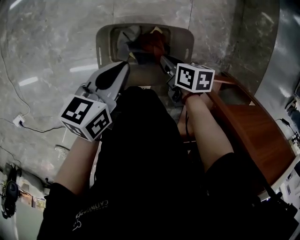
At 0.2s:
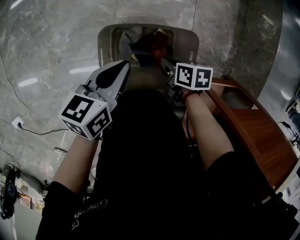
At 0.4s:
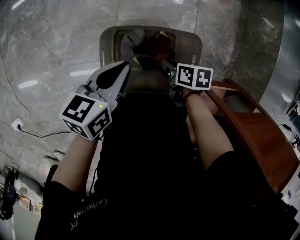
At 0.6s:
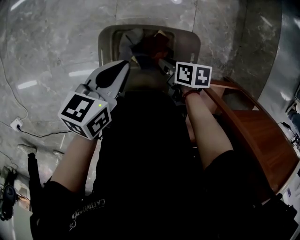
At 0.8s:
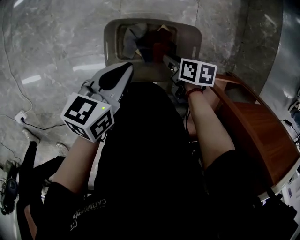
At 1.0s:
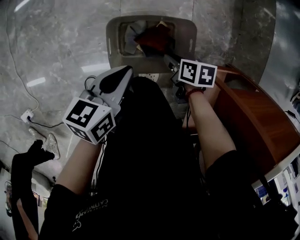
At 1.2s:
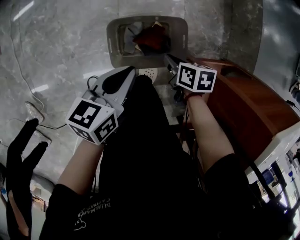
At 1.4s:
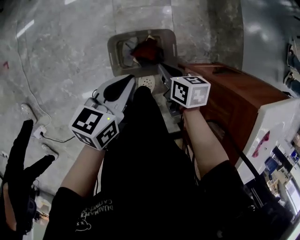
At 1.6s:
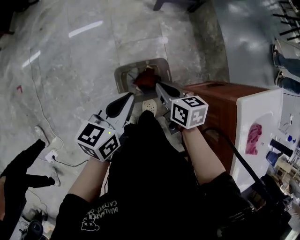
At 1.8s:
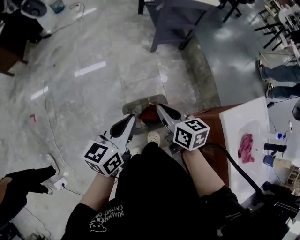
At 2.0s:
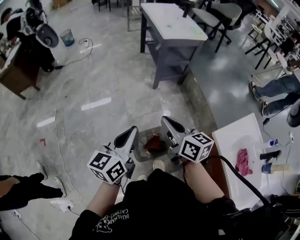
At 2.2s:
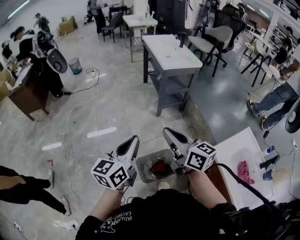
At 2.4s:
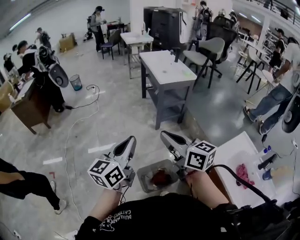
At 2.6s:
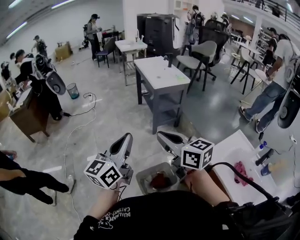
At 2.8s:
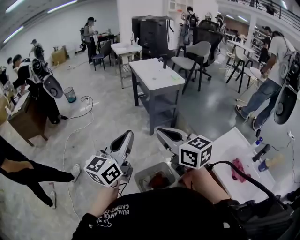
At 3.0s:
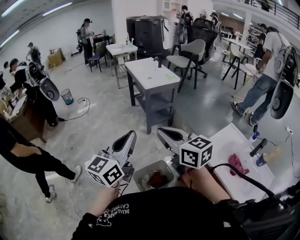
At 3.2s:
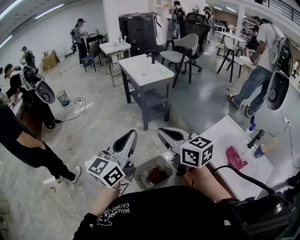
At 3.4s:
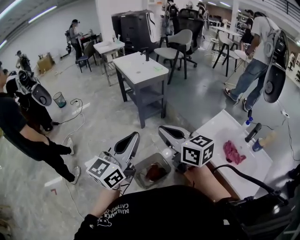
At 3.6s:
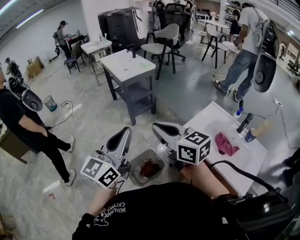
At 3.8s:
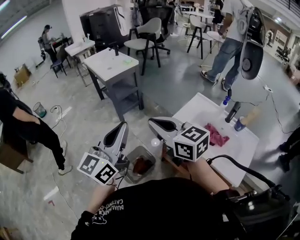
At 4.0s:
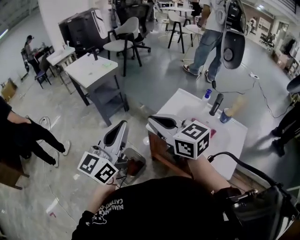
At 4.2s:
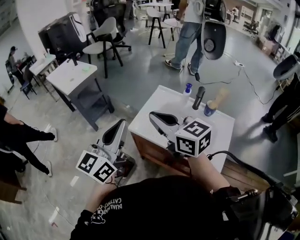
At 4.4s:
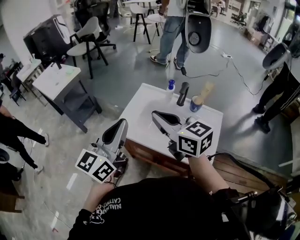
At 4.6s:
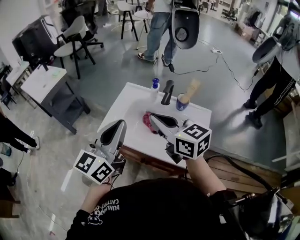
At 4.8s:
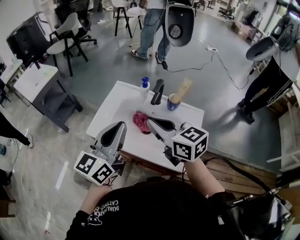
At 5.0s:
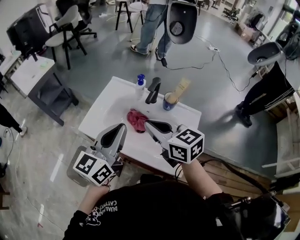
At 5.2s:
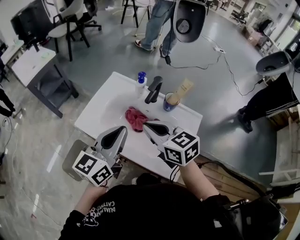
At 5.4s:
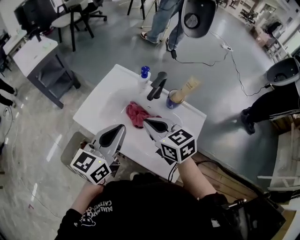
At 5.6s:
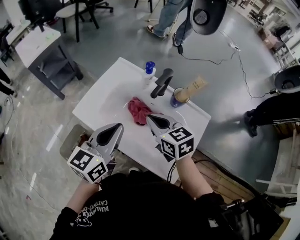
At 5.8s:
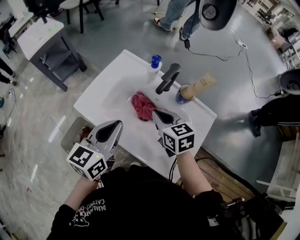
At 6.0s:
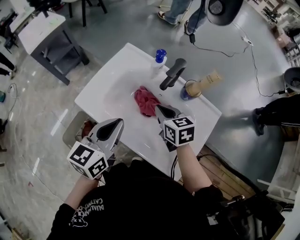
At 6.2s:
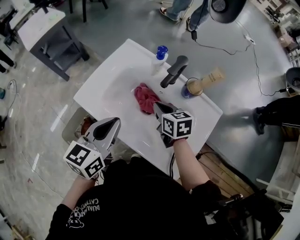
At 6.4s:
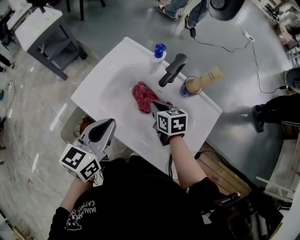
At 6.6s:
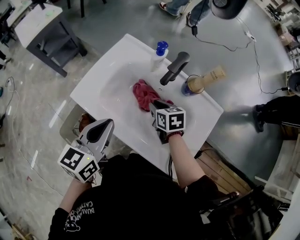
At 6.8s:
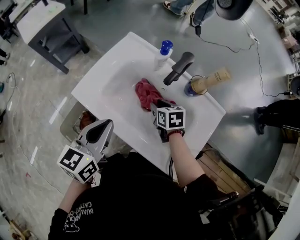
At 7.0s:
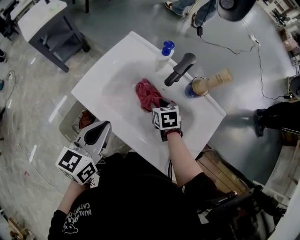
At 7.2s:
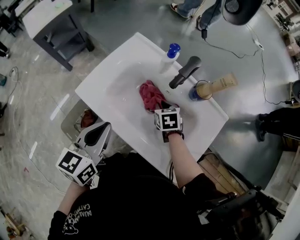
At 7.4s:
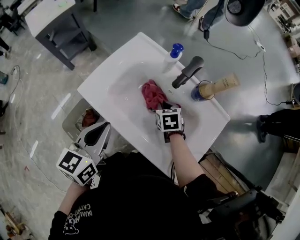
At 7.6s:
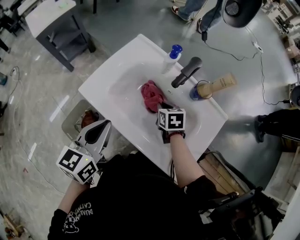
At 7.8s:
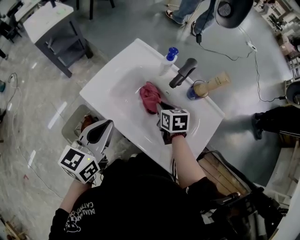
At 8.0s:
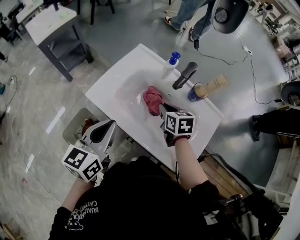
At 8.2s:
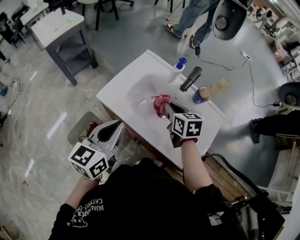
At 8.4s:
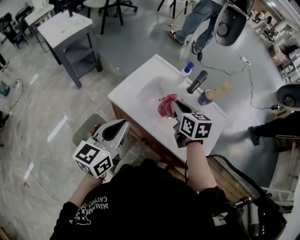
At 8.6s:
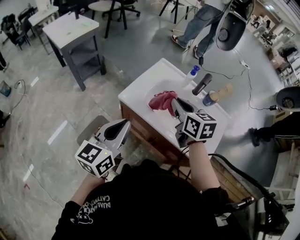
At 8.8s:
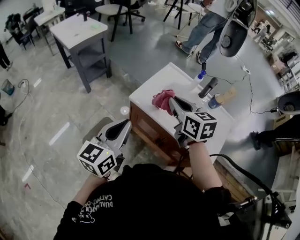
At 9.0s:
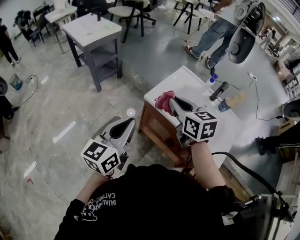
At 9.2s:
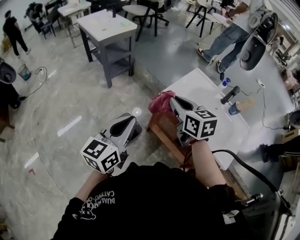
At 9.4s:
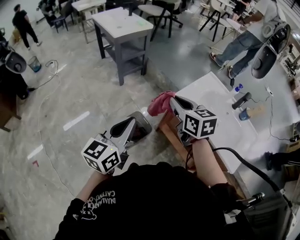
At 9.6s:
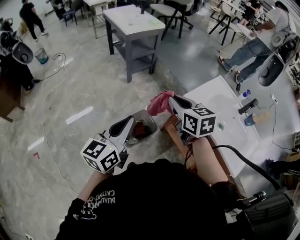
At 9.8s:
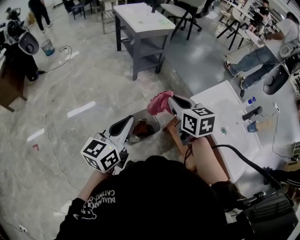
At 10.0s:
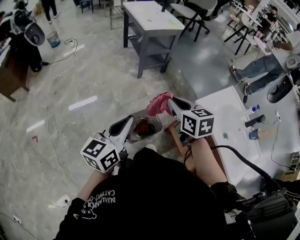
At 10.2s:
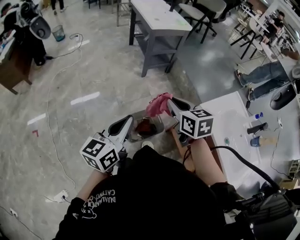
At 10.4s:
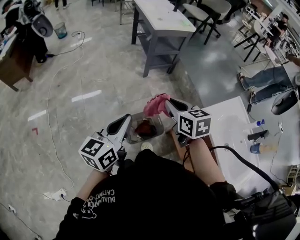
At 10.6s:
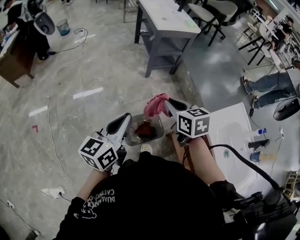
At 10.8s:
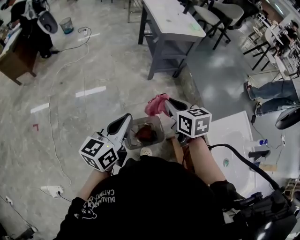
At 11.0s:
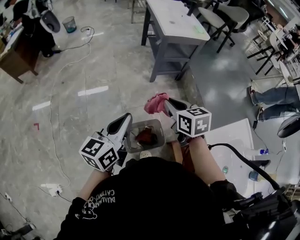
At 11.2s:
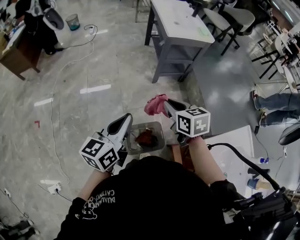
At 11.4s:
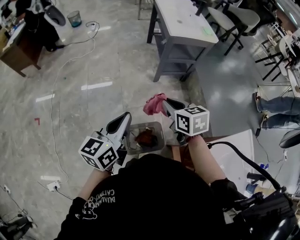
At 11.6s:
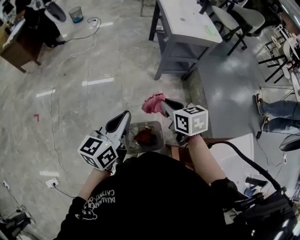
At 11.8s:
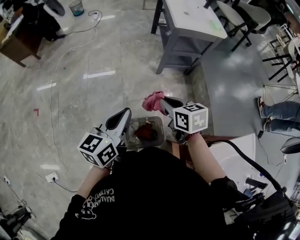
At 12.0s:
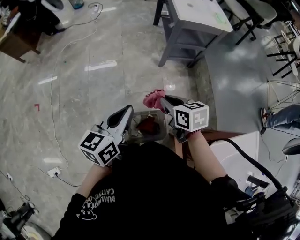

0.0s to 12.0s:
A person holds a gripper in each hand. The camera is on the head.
0.0s to 1.6s: Both grippers move upward, roughly 35 cm. The right gripper changes its angle by about 30 degrees, and opens, then closes once more.
1.6s to 3.0s: The two grippers go about 50 cm upward. The right gripper points its fingers some 40 degrees further upward. The left gripper tips its fingers upward by about 30 degrees.
3.0s to 4.4s: The two grippers travel together, some 40 cm. The left gripper changes its angle by roughly 40 degrees, while the right gripper changes its angle by some 30 degrees.
4.4s to 6.0s: The right gripper travels downward, to the right and forward by roughly 35 cm, and swivels some 30 degrees. Meanwhile the left gripper shifts about 25 cm downward and to the right, and swivels roughly 30 degrees.
6.0s to 7.6s: The left gripper moves to the left, approximately 5 cm; the right gripper moves downward, about 10 cm, and opens, then closes once more.
7.6s to 9.0s: The left gripper heads to the left, backward and upward, covering approximately 30 cm; the right gripper goes some 40 cm upward, to the left and backward, and changes its angle by about 30 degrees.
9.0s to 10.4s: The right gripper changes place by roughly 30 cm, and rotates roughly 30 degrees. The left gripper ends up some 30 cm from where it was, and turns by roughly 30 degrees.
10.4s to 12.0s: The right gripper is displaced forward and downward by some 25 cm, and rotates roughly 20 degrees, while the left gripper shifts roughly 20 cm forward.

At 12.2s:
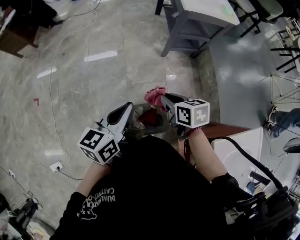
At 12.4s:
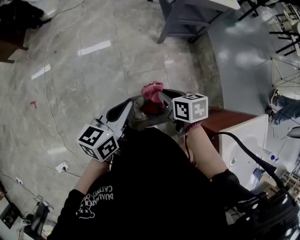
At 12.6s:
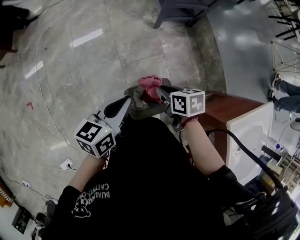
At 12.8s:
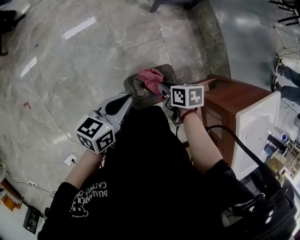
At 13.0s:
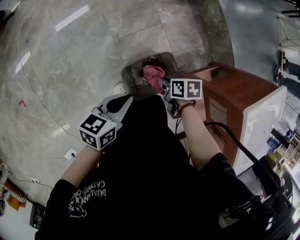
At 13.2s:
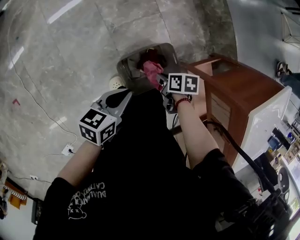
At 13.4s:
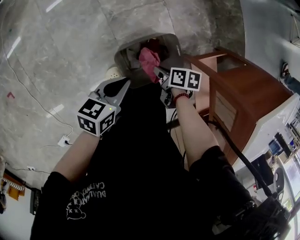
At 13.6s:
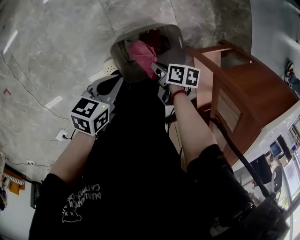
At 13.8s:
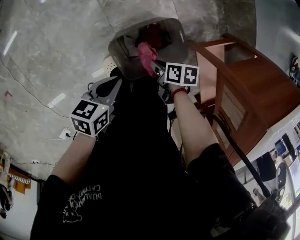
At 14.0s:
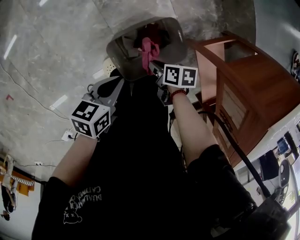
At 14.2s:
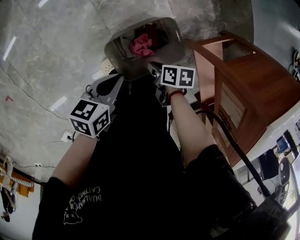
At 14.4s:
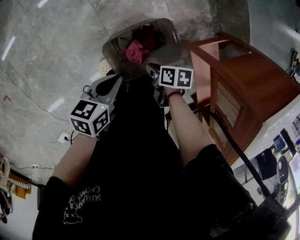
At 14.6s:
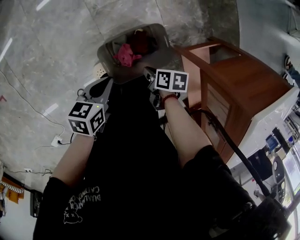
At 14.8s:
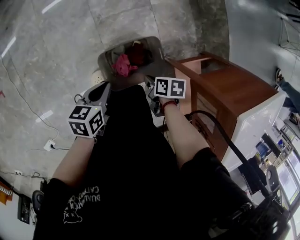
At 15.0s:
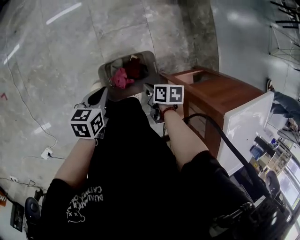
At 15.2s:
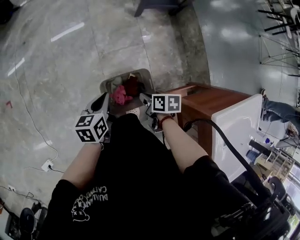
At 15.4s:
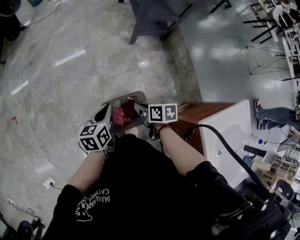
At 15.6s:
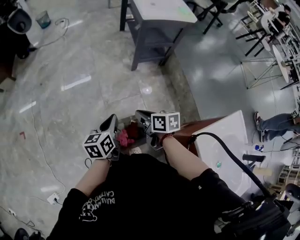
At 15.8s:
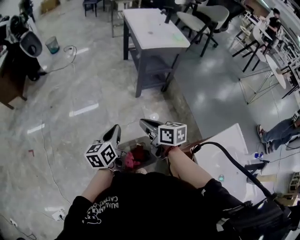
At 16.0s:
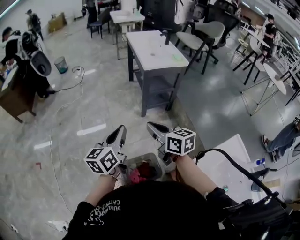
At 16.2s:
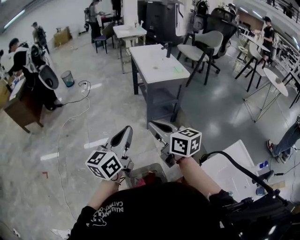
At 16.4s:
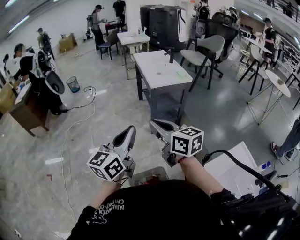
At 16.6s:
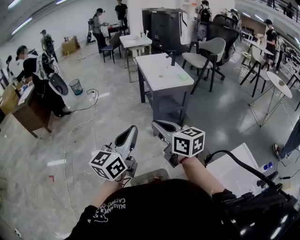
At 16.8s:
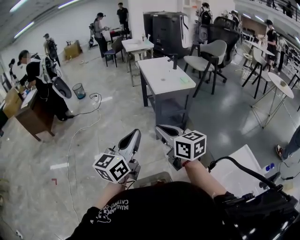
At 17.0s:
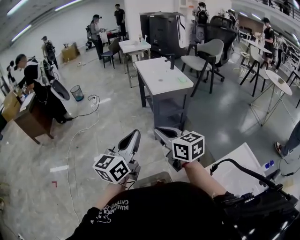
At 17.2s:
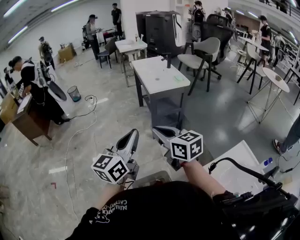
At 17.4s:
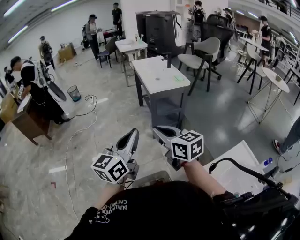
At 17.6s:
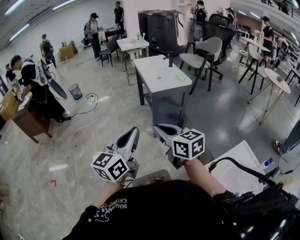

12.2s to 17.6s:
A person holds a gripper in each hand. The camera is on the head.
12.2s to 13.6s: The grippers both shift downward by about 40 cm. The left gripper turns by about 50 degrees. The right gripper twists roughly 50 degrees clockwise, seen from behind.
13.6s to 15.0s: The left gripper goes approximately 10 cm upward, and rotates some 20 degrees, while the right gripper goes roughly 15 cm upward.
15.0s to 16.2s: Both grippers travel together upward, approximately 50 cm. The left gripper angles its fingers upward, by about 50 degrees, while the right gripper tips its fingers upward by roughly 50 degrees.
16.2s to 17.6s: The left gripper ends up about 5 cm from where it was.

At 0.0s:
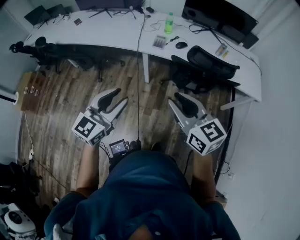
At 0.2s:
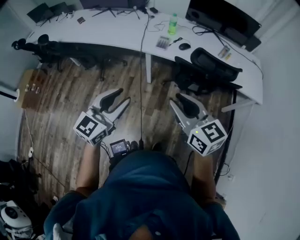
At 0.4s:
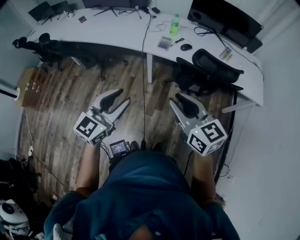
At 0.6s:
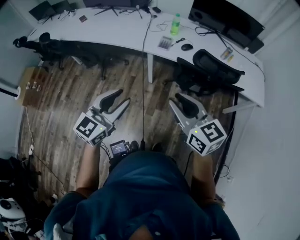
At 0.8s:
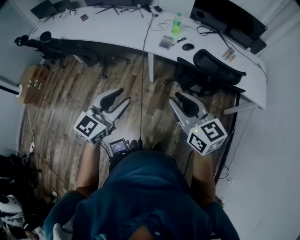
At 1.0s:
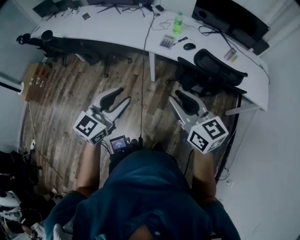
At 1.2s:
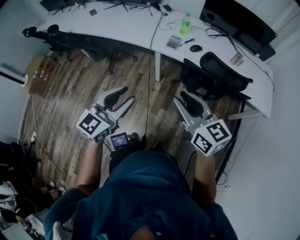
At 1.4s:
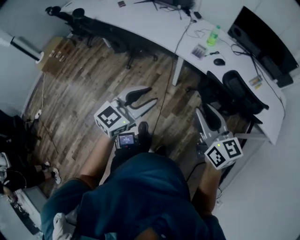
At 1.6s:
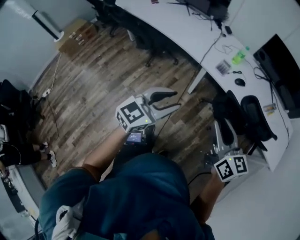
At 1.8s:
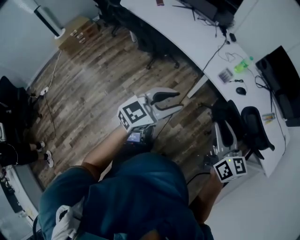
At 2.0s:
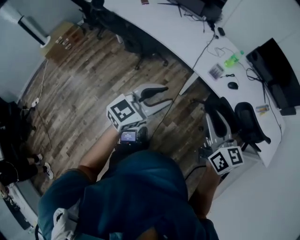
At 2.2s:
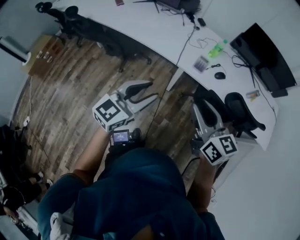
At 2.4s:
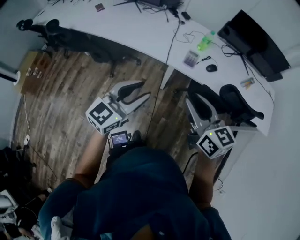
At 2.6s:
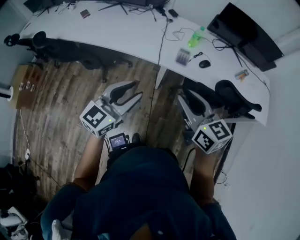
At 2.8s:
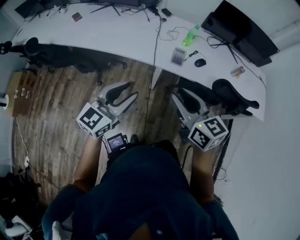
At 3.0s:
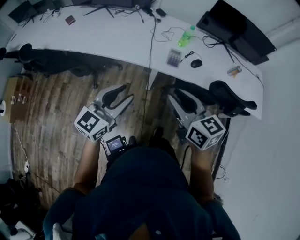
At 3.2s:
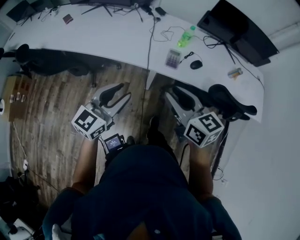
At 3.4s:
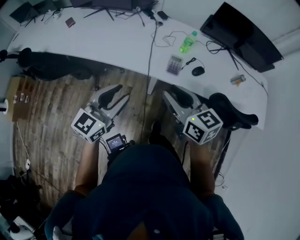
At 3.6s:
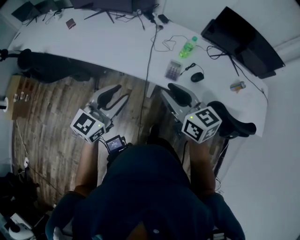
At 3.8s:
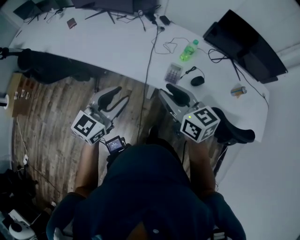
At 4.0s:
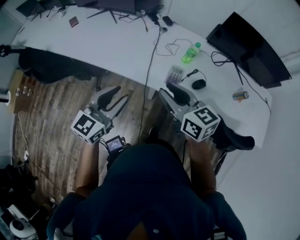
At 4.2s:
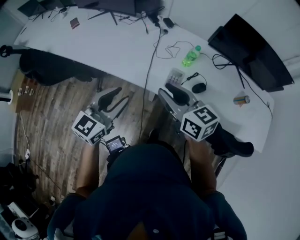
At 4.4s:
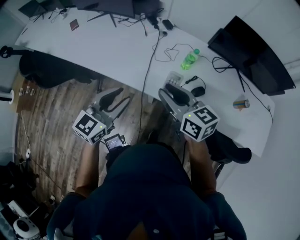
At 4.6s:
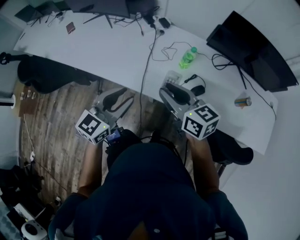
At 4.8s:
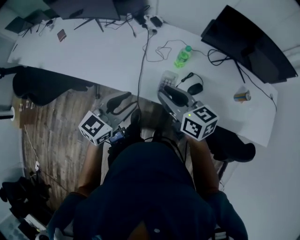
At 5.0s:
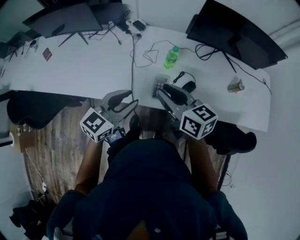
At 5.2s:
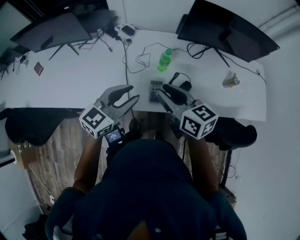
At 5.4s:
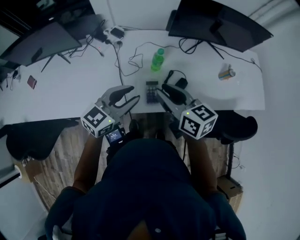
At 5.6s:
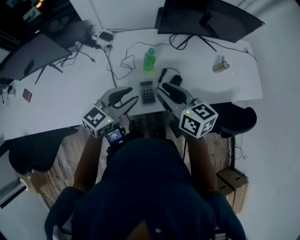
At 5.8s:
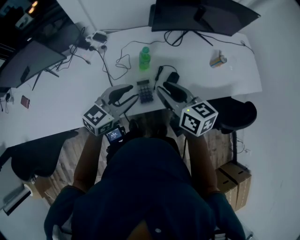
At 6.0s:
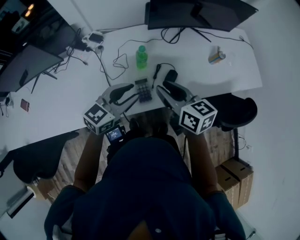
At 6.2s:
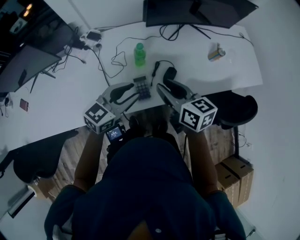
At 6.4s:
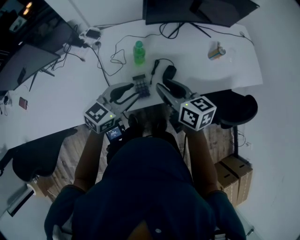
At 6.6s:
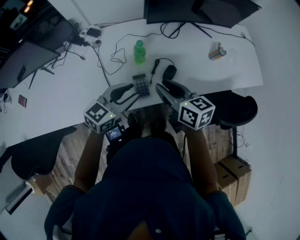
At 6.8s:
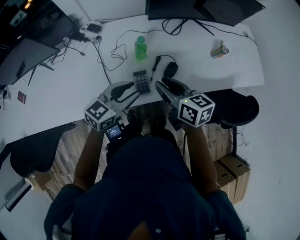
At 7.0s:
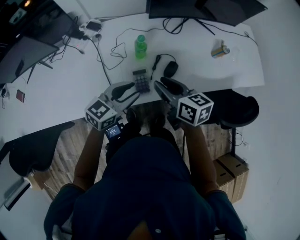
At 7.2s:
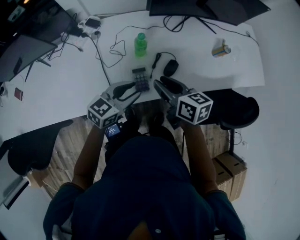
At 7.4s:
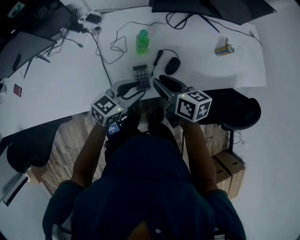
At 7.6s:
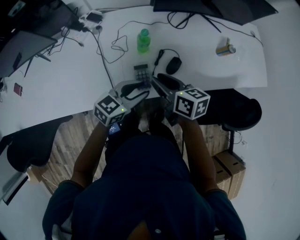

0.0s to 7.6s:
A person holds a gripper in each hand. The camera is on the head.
0.0s to 1.6s: Both grippers move forward, some 5 cm.
1.6s to 3.0s: The two grippers go approximately 25 cm forward and to the left.
3.0s to 4.6s: The left gripper moves forward and to the right, approximately 25 cm. Meanwhile the right gripper goes about 25 cm forward.
4.6s to 6.0s: The right gripper changes place by approximately 15 cm, and turns by about 40 degrees. Meanwhile the left gripper shifts by roughly 20 cm, and swivels about 40 degrees.
6.0s to 7.6s: Both grippers travel together downward, about 10 cm.
